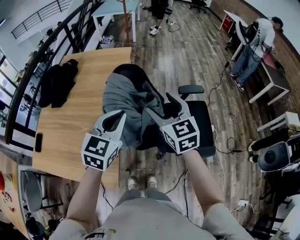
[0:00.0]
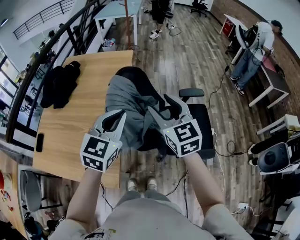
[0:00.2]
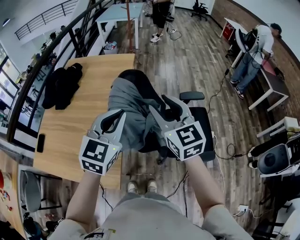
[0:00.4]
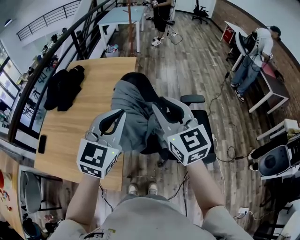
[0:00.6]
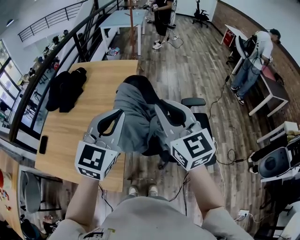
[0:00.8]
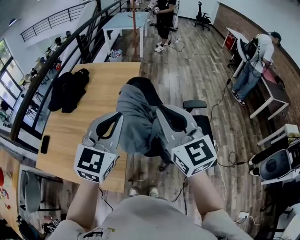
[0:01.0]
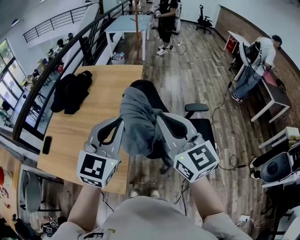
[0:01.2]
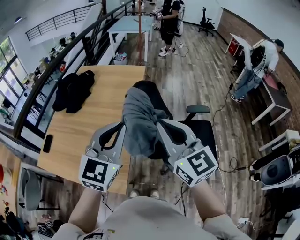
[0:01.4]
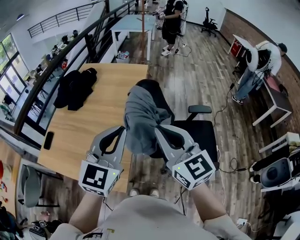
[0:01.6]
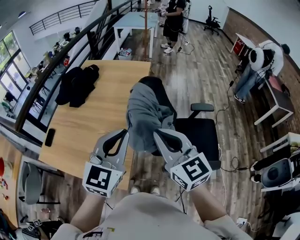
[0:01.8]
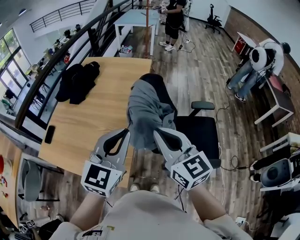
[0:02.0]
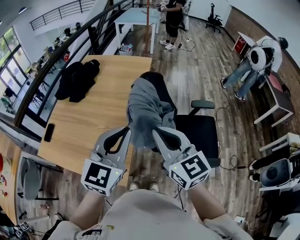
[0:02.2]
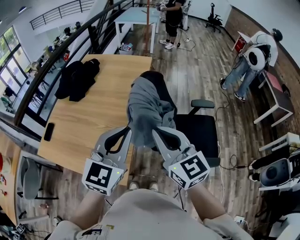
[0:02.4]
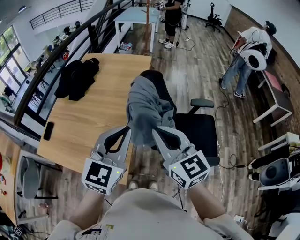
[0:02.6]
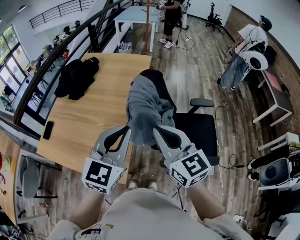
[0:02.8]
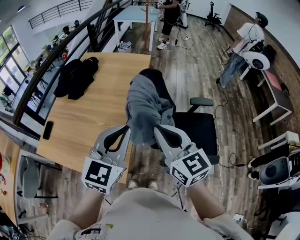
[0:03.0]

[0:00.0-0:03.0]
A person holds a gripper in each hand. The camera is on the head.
0:00.0 to 0:01.6: The right gripper moves backward, upward and to the left, some 20 cm, and closes, while the left gripper goes some 15 cm upward, backward and to the left.
0:01.6 to 0:03.0: The grippers stay close to where they were, moving slightly.

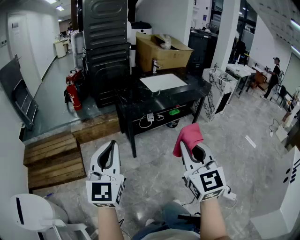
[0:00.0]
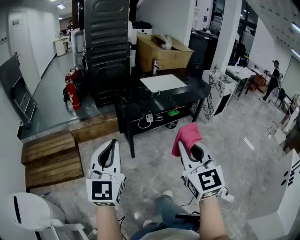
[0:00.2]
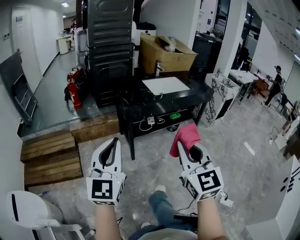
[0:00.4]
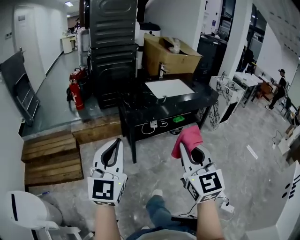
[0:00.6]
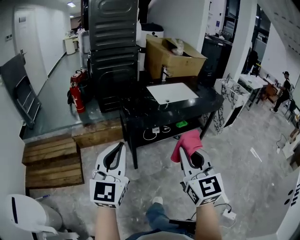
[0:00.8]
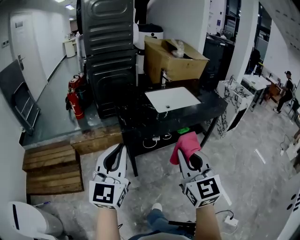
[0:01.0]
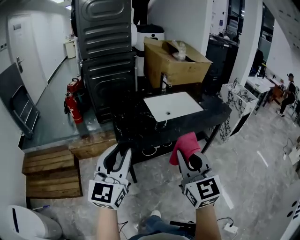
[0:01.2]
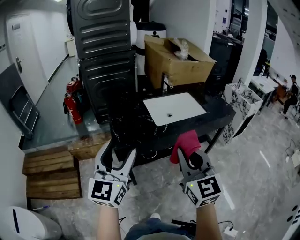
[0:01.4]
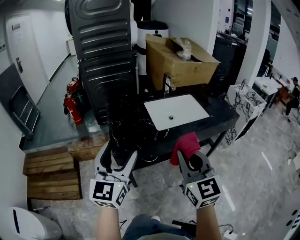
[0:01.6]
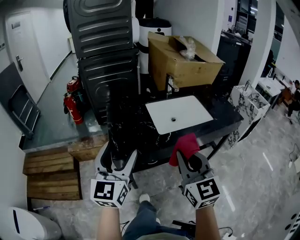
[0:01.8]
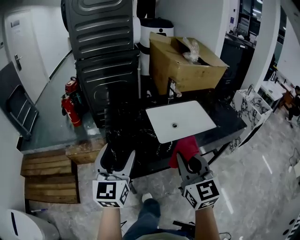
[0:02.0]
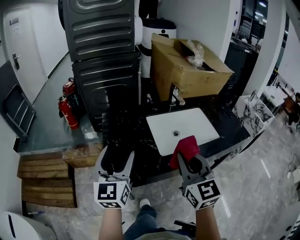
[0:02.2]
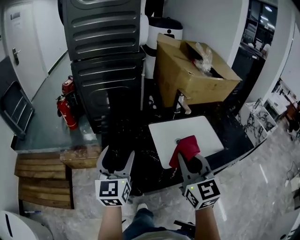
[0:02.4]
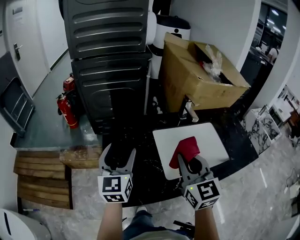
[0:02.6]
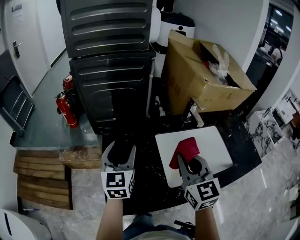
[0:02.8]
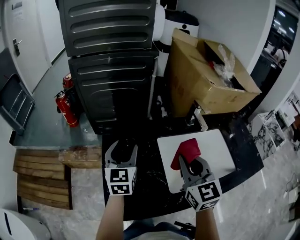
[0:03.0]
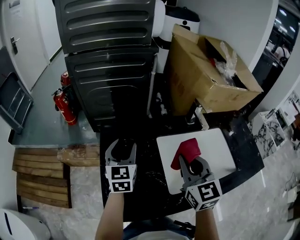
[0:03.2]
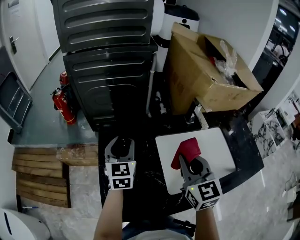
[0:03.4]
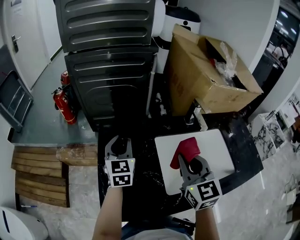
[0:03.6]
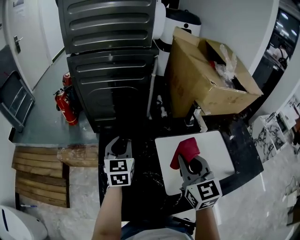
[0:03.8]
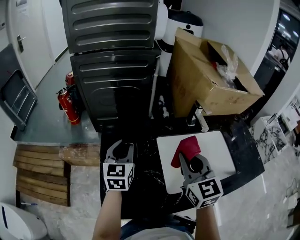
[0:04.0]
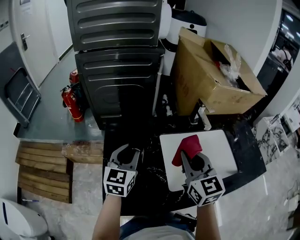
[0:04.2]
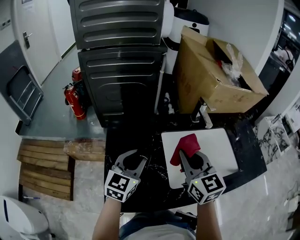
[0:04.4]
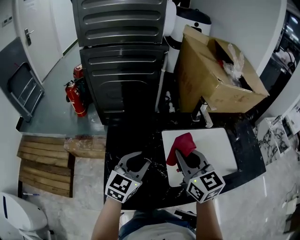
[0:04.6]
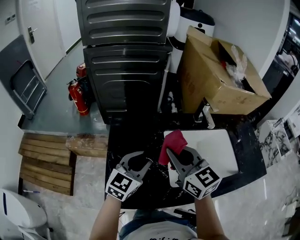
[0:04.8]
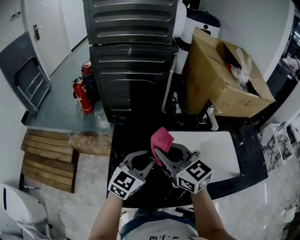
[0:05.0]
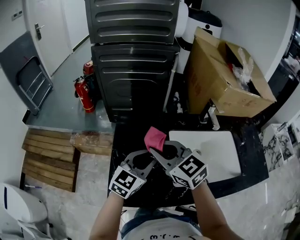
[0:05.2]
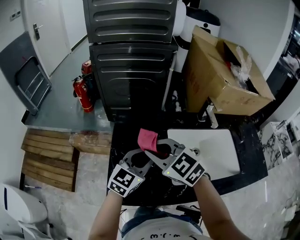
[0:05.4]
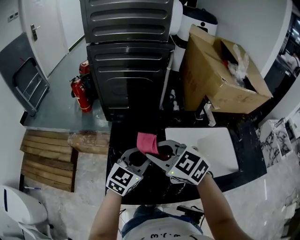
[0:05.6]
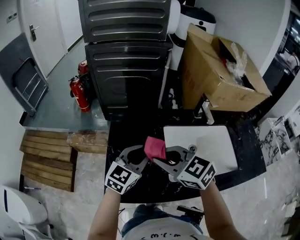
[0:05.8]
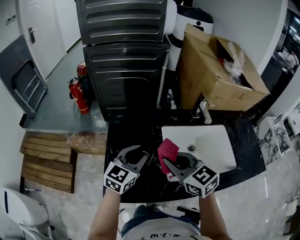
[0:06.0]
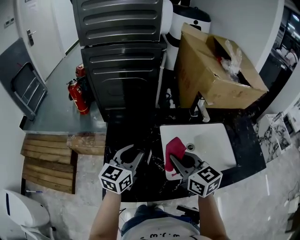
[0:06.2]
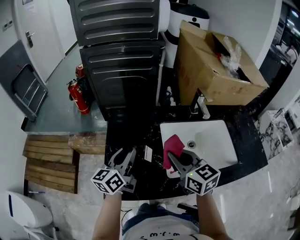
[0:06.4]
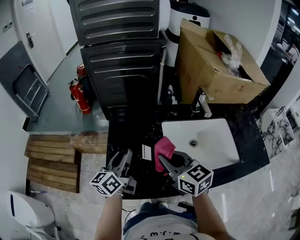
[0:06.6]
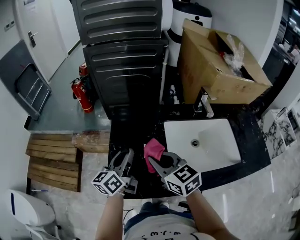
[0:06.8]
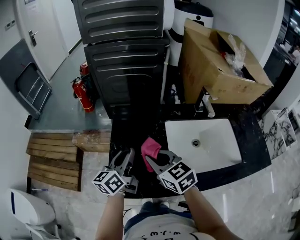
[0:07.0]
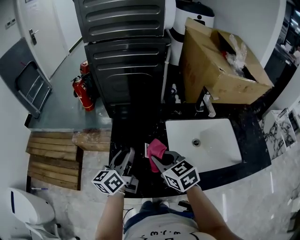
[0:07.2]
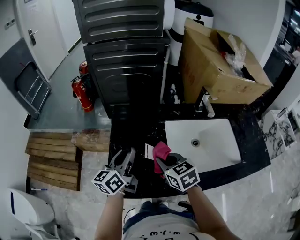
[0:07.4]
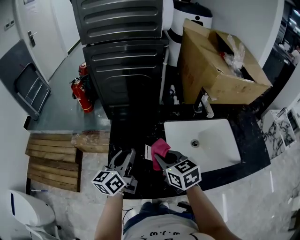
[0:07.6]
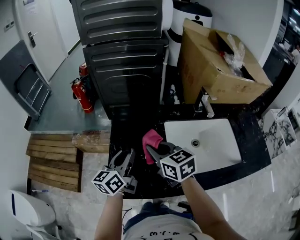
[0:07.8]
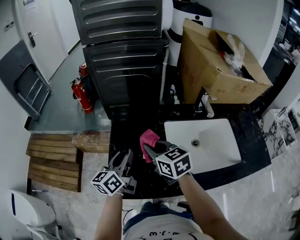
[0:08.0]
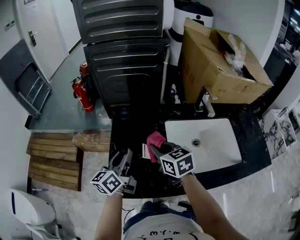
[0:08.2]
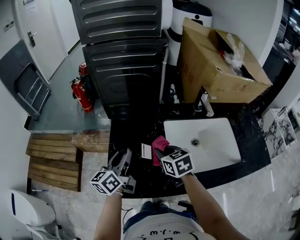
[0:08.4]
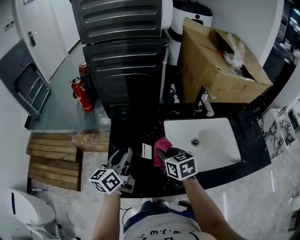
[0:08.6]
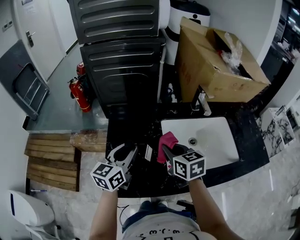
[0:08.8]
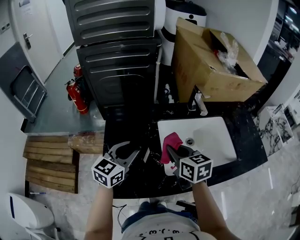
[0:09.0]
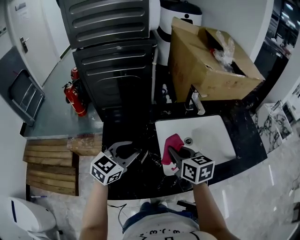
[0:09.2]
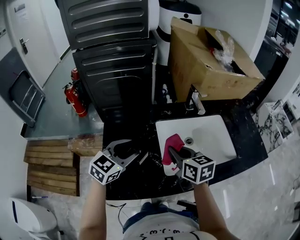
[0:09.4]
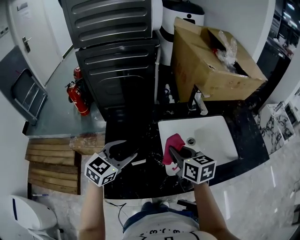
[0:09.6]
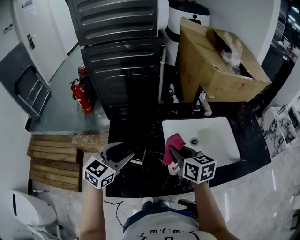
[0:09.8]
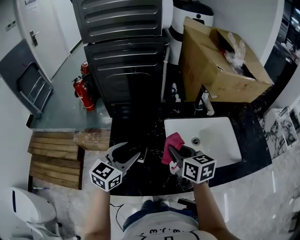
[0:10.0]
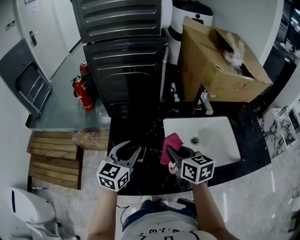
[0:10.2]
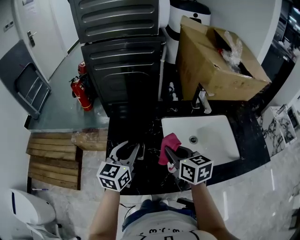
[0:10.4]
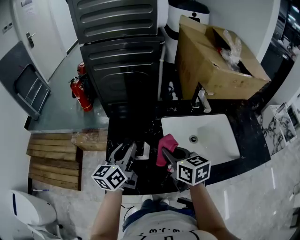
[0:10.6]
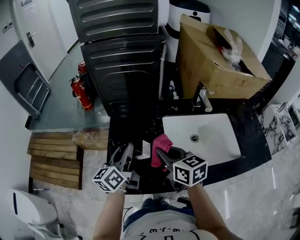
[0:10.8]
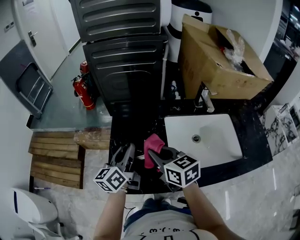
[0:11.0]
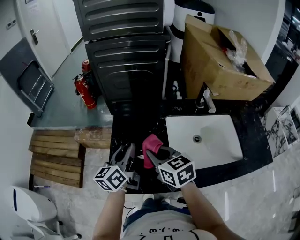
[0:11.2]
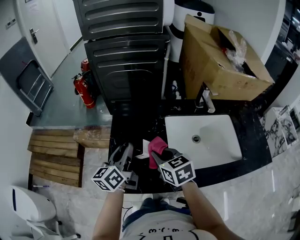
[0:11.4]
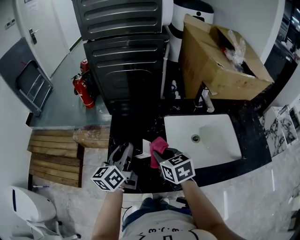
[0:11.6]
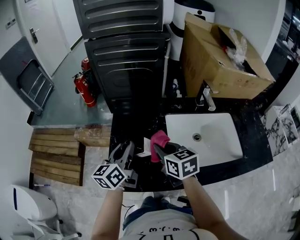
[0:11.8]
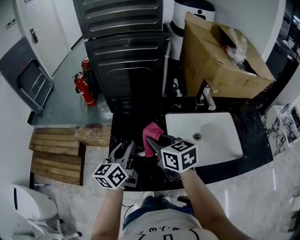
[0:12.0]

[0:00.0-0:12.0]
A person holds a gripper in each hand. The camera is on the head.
0:00.0 to 0:01.6: The two grippers travel together, forward, about 40 cm. The left gripper opens its fingers.
0:01.6 to 0:03.0: Both grippers travel together forward, about 40 cm. The left gripper rotates about 20 degrees.
0:03.0 to 0:04.4: The left gripper moves backward and to the right, roughly 10 cm, rotates about 20 degrees, and closes its fingers.
0:04.4 to 0:06.0: The right gripper is displaced to the left by approximately 5 cm, and rotates about 30 degrees.
0:06.0 to 0:07.6: The left gripper goes roughly 10 cm to the left, and changes its angle by roughly 40 degrees, while the right gripper moves left and right over about 10 cm, changing direction 2 times.
0:07.6 to 0:09.0: Both grippers move to the right, some 5 cm. The left gripper rotates roughly 40 degrees.
0:09.0 to 0:10.4: The left gripper opens, then closes once more.
0:10.4 to 0:12.0: The right gripper travels to the left by approximately 10 cm. The left gripper swivels approximately 20 degrees.

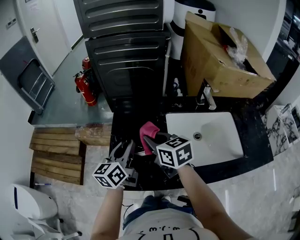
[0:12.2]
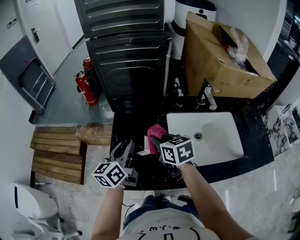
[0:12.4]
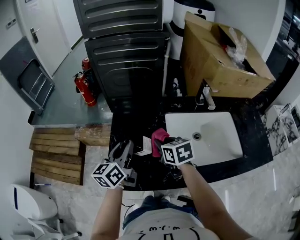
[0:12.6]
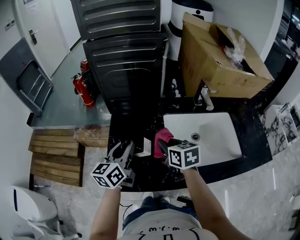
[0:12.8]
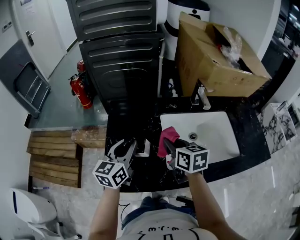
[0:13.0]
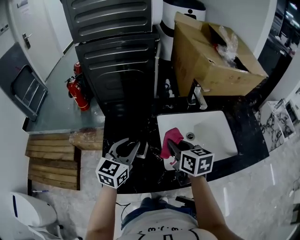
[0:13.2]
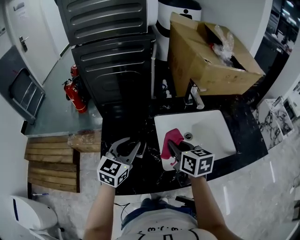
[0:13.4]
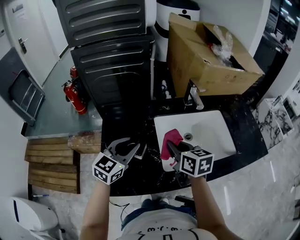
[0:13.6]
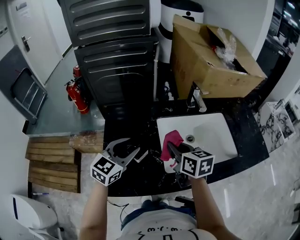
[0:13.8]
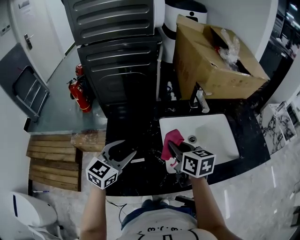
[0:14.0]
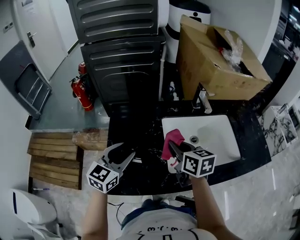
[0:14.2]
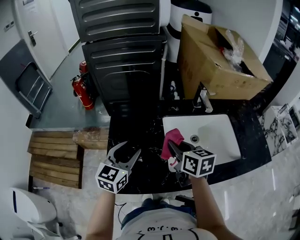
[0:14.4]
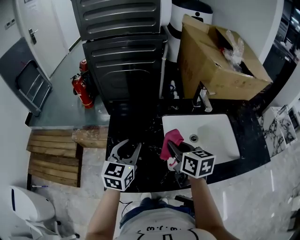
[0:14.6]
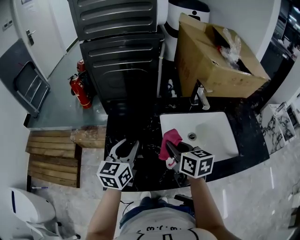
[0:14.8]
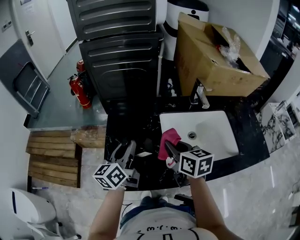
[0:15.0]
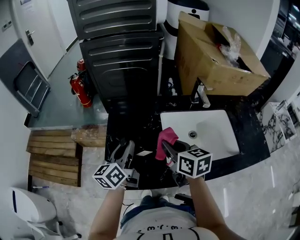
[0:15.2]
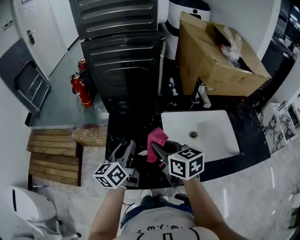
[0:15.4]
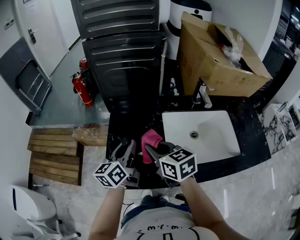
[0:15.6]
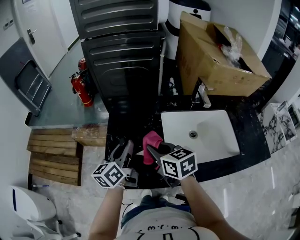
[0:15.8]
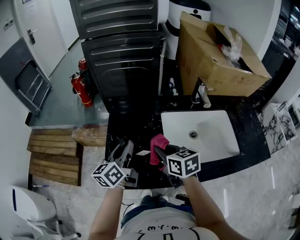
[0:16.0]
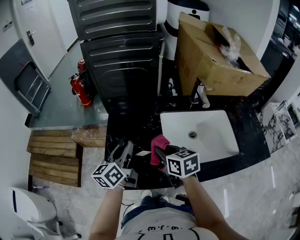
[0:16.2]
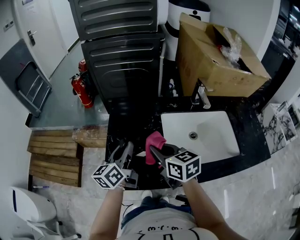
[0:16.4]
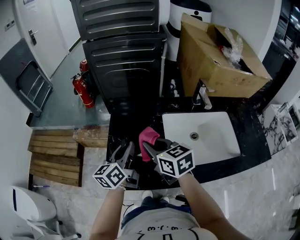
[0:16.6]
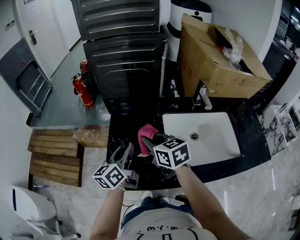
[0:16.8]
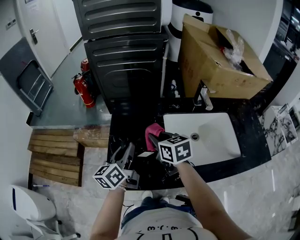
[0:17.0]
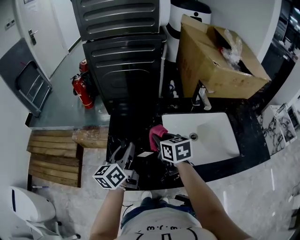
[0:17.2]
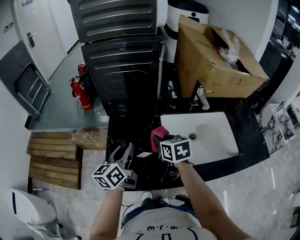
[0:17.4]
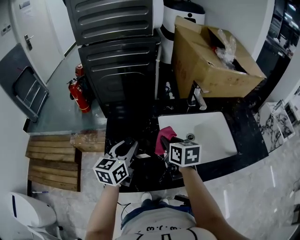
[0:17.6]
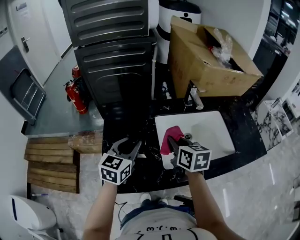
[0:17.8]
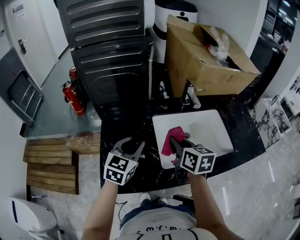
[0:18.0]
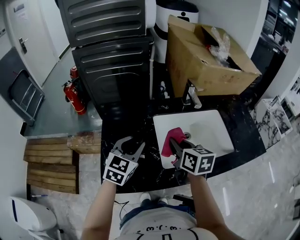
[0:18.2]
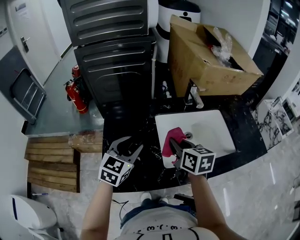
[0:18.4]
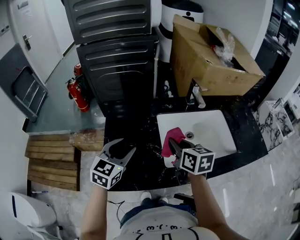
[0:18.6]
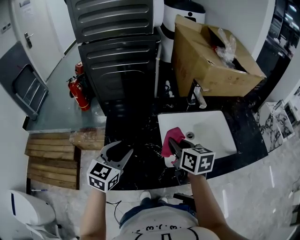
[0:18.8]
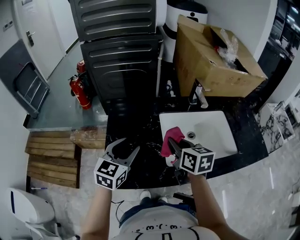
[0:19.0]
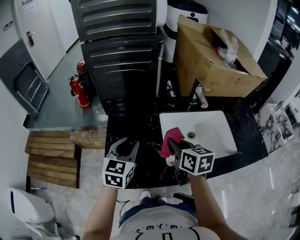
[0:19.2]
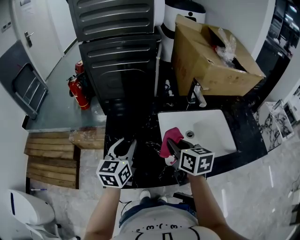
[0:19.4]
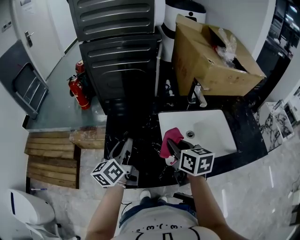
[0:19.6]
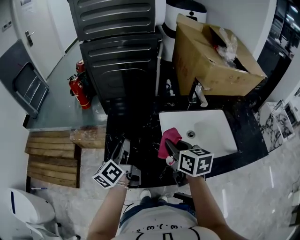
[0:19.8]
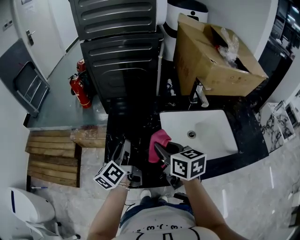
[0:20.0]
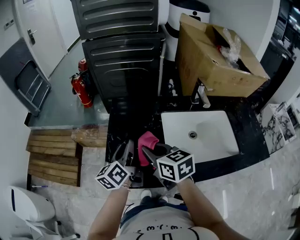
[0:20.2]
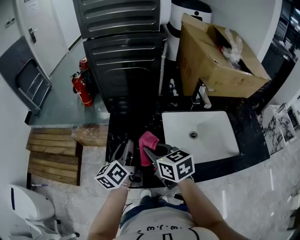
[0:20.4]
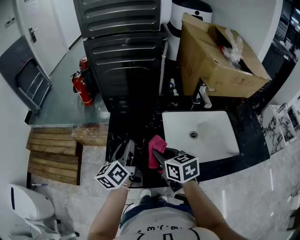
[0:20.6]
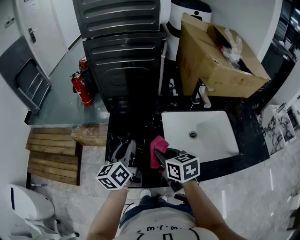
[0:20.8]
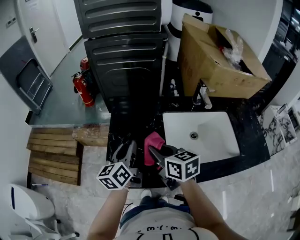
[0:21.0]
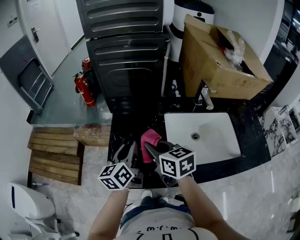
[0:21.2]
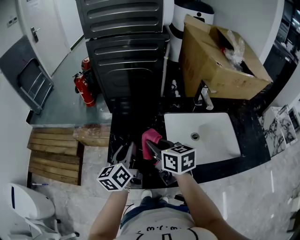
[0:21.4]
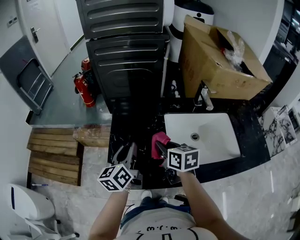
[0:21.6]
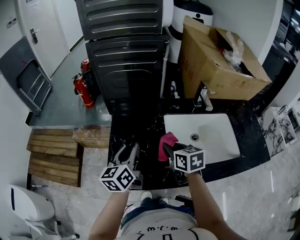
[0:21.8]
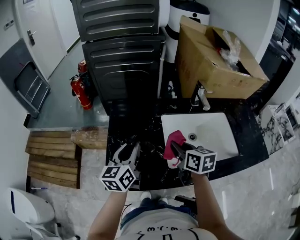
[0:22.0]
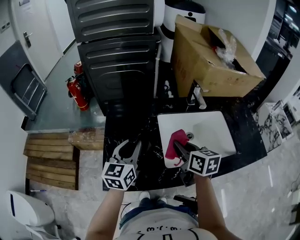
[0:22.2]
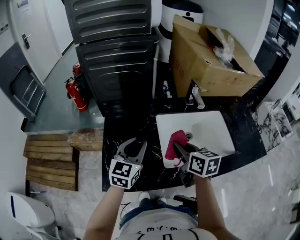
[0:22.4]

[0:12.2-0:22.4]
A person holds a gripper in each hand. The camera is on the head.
0:12.2 to 0:13.6: The right gripper is displaced to the right by approximately 15 cm, and swivels some 20 degrees; the left gripper shifts roughly 10 cm to the right, and rotates about 50 degrees.
0:13.6 to 0:15.2: The left gripper travels to the left by some 5 cm, and rotates around the line of its fingers by roughly 40 degrees, counterclockwise from behind, while the right gripper moves roughly 5 cm.
0:15.2 to 0:16.6: The right gripper moves left and right over some 10 cm, changing direction 2 times.
0:16.6 to 0:18.0: The right gripper is displaced to the right by about 15 cm, and changes its angle by about 30 degrees. The left gripper goes roughly 10 cm to the right, and rotates around the line of its fingers by some 40 degrees, clockwise from behind.
0:18.0 to 0:19.4: The left gripper heads to the left, covering roughly 5 cm, and turns by roughly 30 degrees.
0:19.4 to 0:21.0: The right gripper heads to the left, covering about 10 cm. The left gripper rotates about 20 degrees.
0:21.0 to 0:22.4: The left gripper shifts some 10 cm to the right, and rotates roughly 40 degrees. The right gripper shifts approximately 15 cm to the right.
